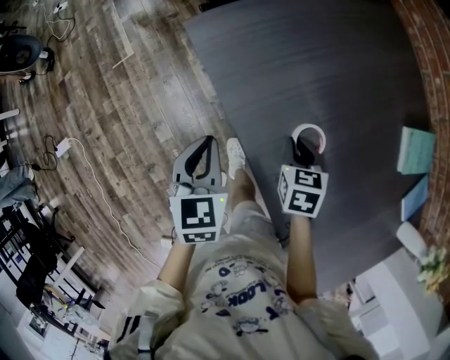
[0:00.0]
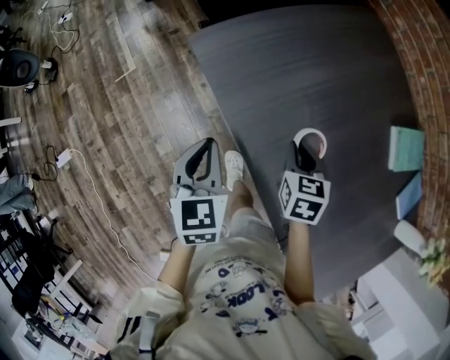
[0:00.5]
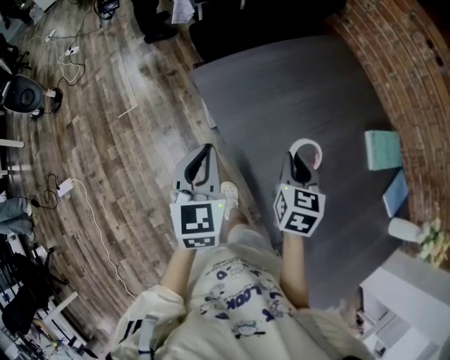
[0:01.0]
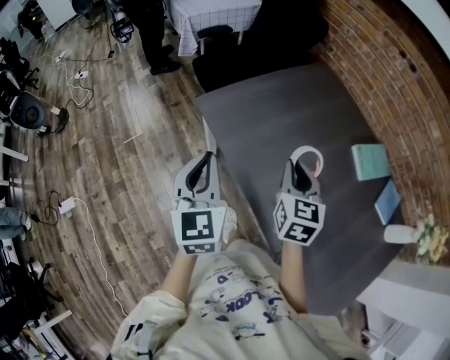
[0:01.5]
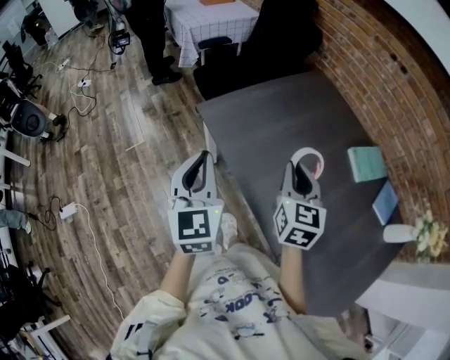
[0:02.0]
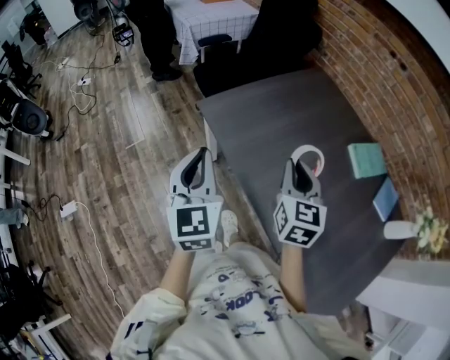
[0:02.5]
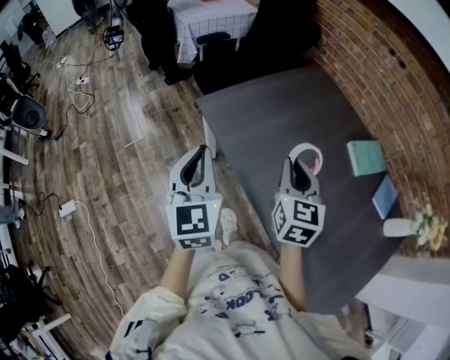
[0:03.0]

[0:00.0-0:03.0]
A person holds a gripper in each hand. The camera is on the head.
0:00.0 to 0:01.5: Both grippers travel together upward, some 20 cm. The left gripper turns by some 30 degrees. The right gripper tilts its fingers approximately 40 degrees upward.
0:01.5 to 0:03.0: The right gripper moves approximately 5 cm.

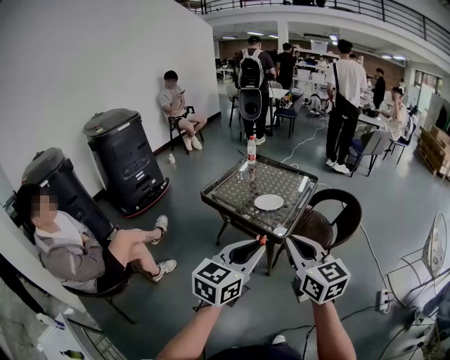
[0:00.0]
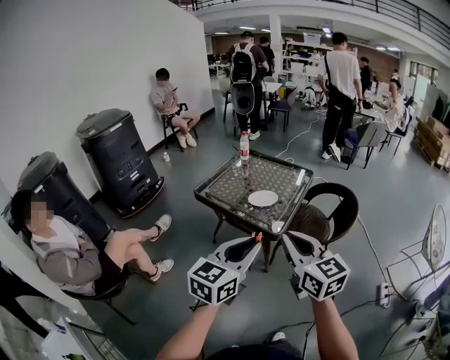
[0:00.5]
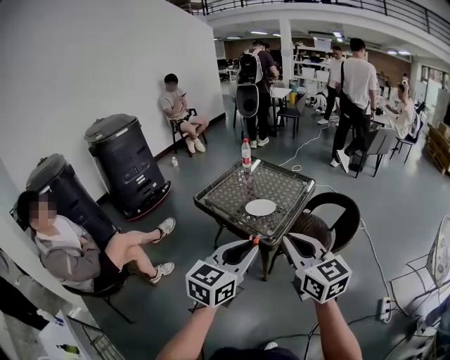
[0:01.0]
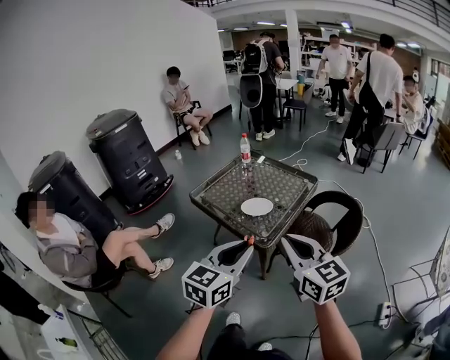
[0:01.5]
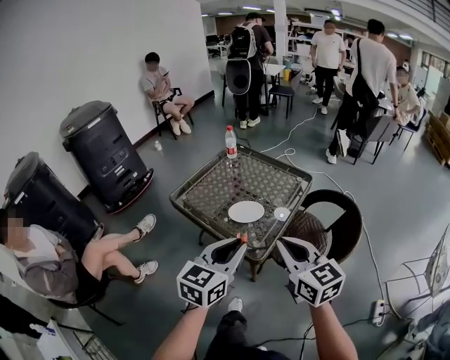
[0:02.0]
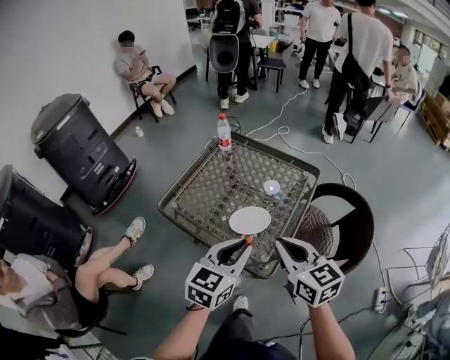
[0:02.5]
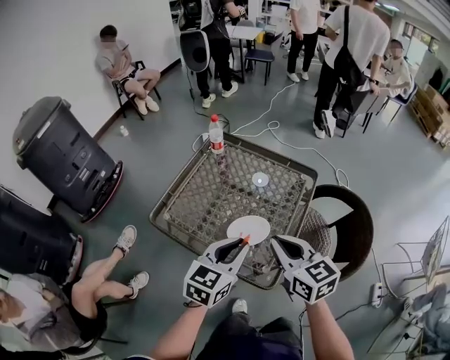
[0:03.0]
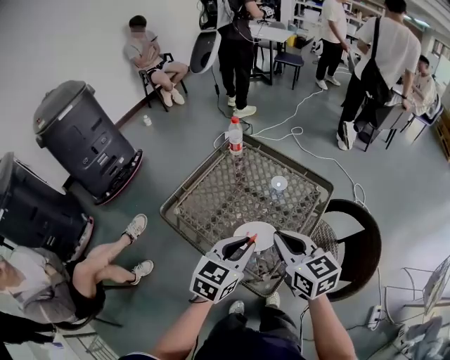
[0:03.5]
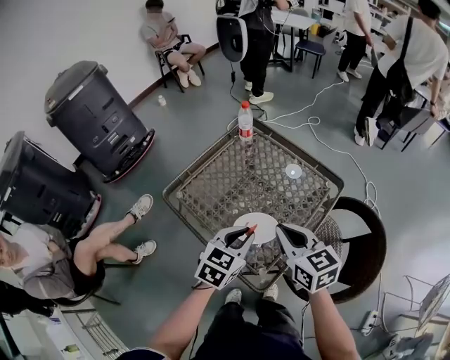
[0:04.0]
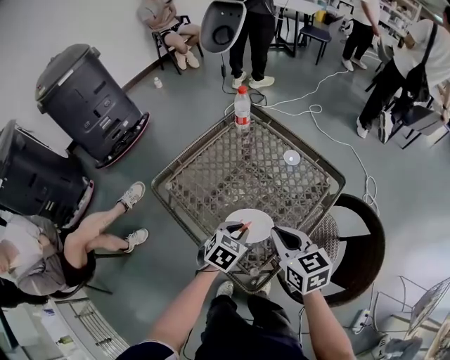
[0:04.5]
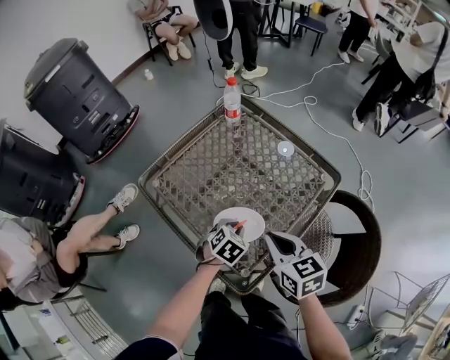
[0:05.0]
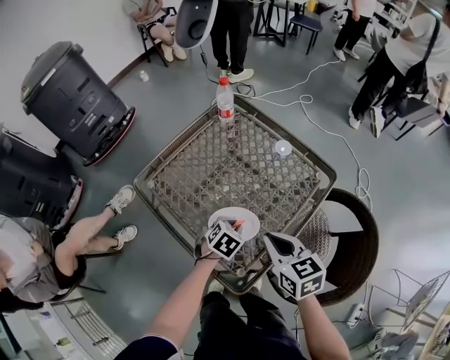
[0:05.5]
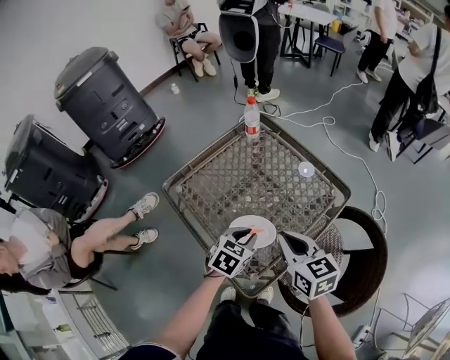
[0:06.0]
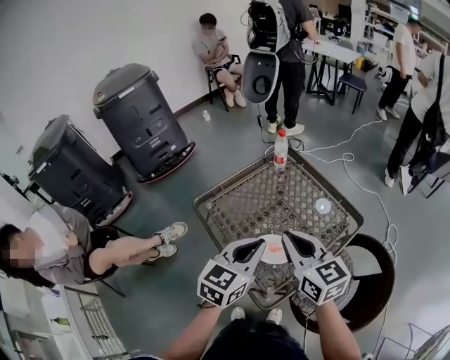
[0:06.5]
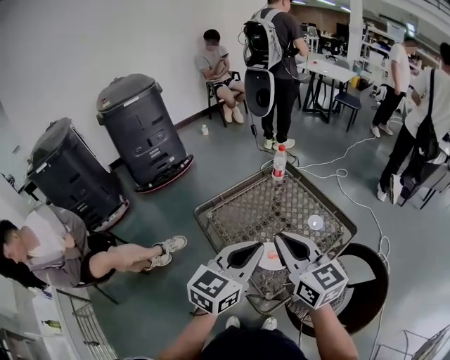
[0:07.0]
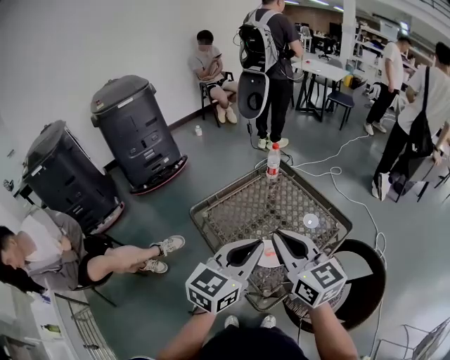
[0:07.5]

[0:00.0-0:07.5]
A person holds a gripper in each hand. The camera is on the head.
0:00.0 to 0:02.0: The right gripper goes approximately 25 cm forward and to the right. Meanwhile the left gripper moves forward, about 20 cm.
0:02.0 to 0:04.0: The grippers both shift forward and downward by approximately 30 cm.
0:04.0 to 0:05.5: The left gripper shifts some 20 cm downward, and swivels approximately 30 degrees, while the right gripper moves downward, roughly 10 cm.
0:05.5 to 0:07.5: The right gripper goes approximately 25 cm upward, and turns by some 30 degrees. The left gripper is displaced upward by some 40 cm, and tilts its fingers some 50 degrees upward.

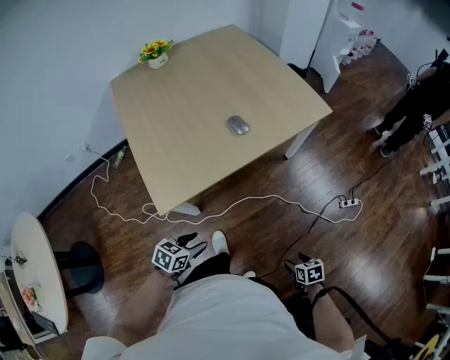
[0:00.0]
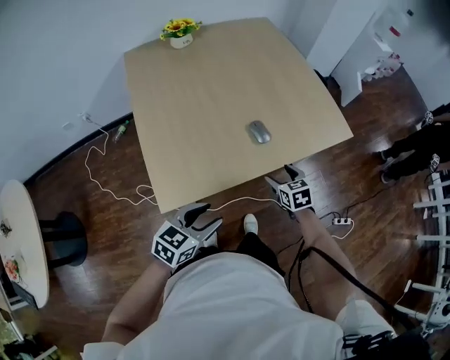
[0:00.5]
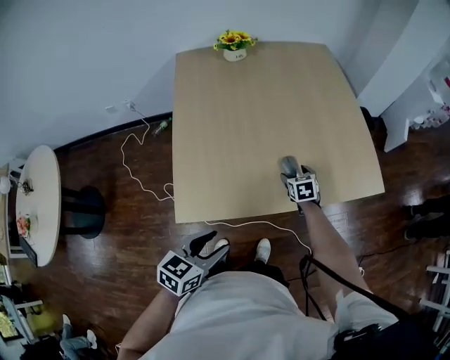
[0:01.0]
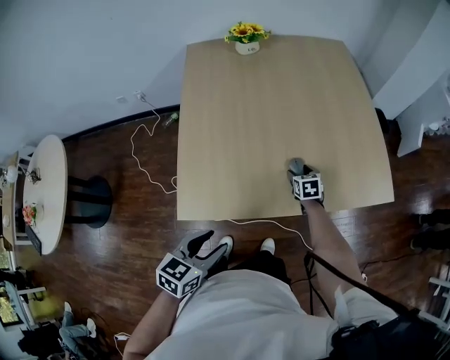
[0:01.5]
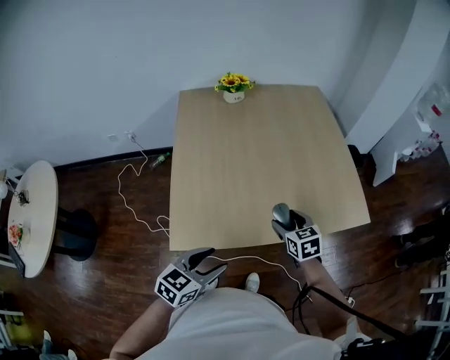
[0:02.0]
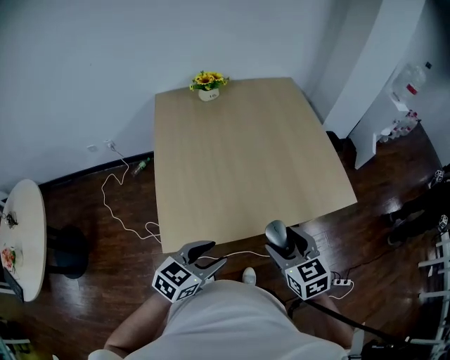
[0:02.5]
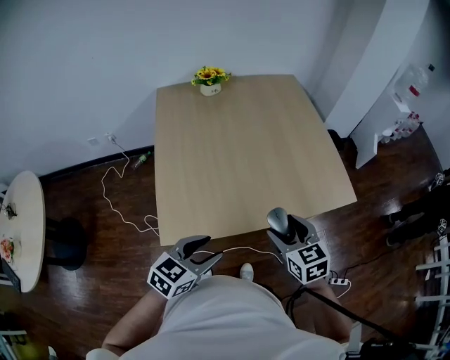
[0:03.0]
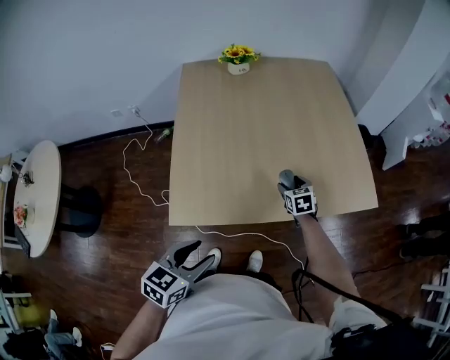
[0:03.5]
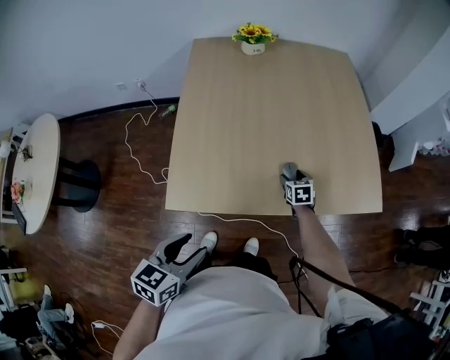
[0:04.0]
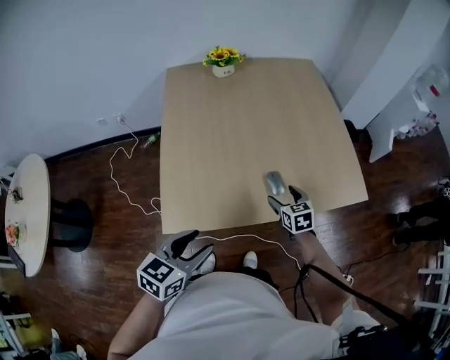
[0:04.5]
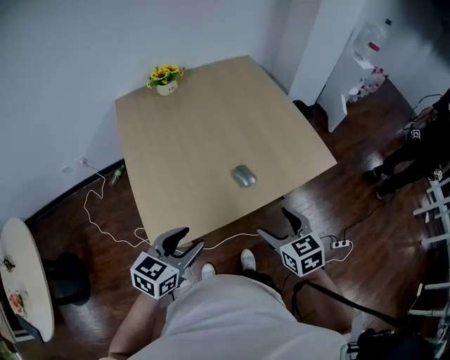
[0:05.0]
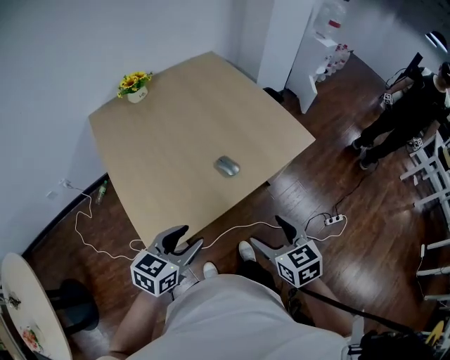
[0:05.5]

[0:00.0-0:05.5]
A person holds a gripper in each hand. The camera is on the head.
0:00.0 to 0:02.0: The right gripper is displaced forward, to the left and upward by about 60 cm, and swivels about 40 degrees. Meanwhile the left gripper moves upward and forward, some 25 cm, and changes its angle by approximately 30 degrees.
0:02.0 to 0:03.5: The right gripper goes roughly 15 cm downward and forward.
0:03.5 to 0:05.5: The right gripper ends up about 35 cm from where it was, and changes its angle by some 20 degrees. Meanwhile the left gripper moves some 5 cm, and rotates about 30 degrees.

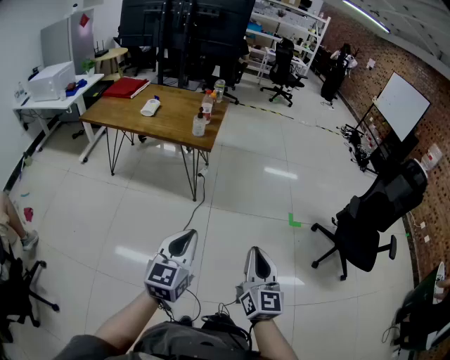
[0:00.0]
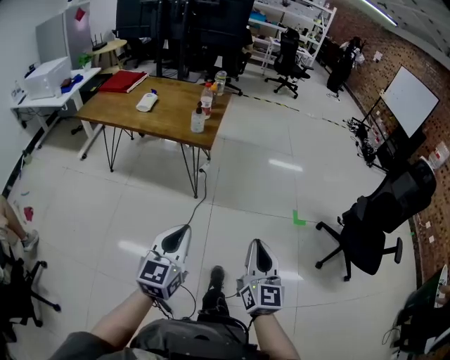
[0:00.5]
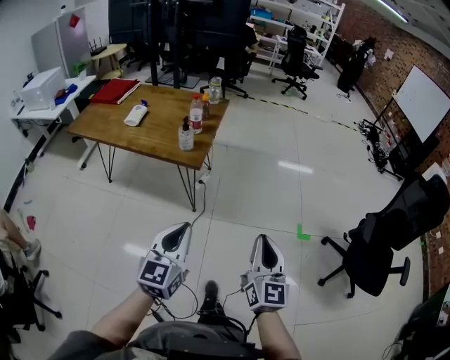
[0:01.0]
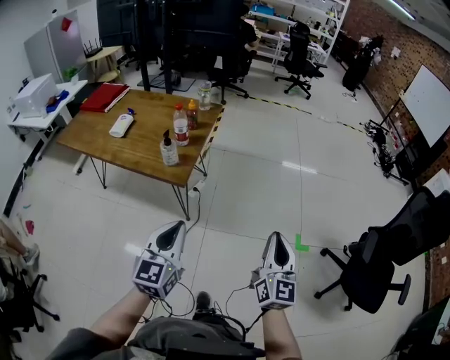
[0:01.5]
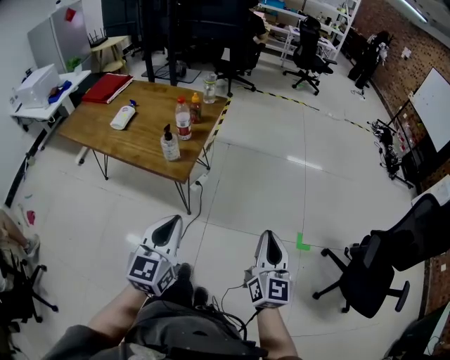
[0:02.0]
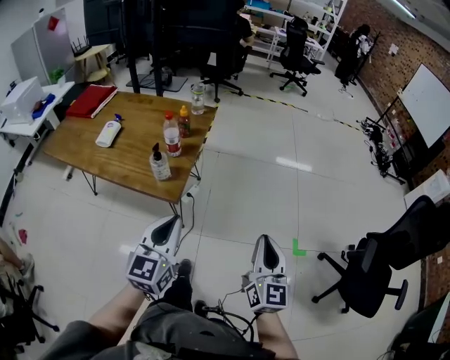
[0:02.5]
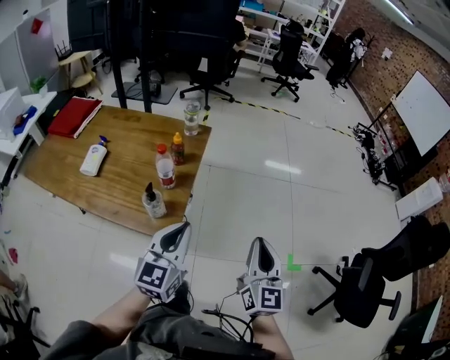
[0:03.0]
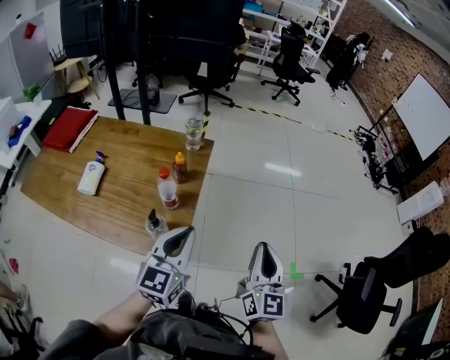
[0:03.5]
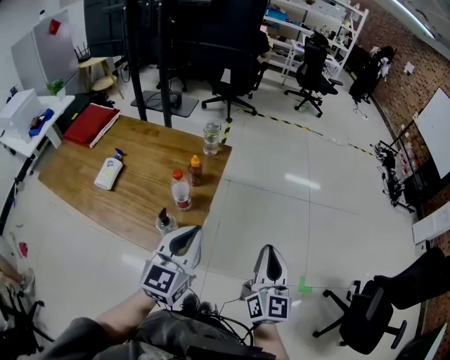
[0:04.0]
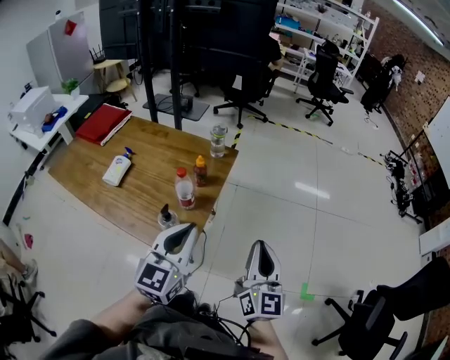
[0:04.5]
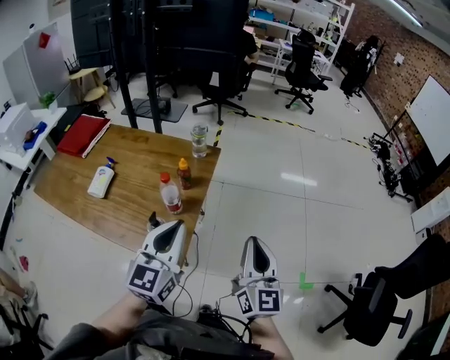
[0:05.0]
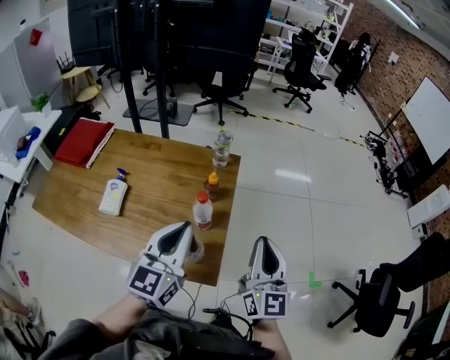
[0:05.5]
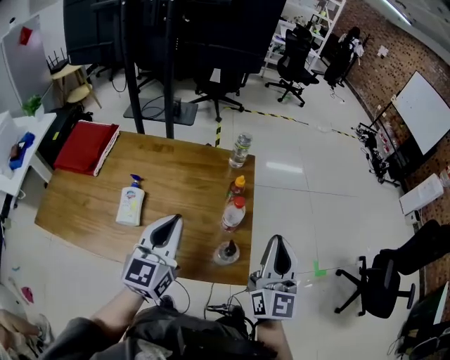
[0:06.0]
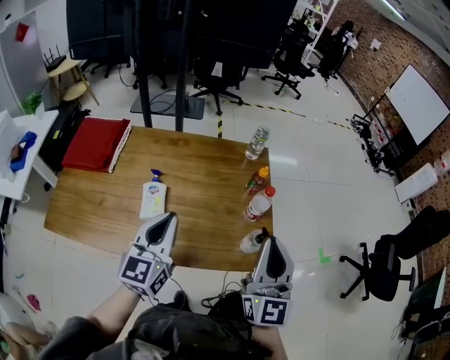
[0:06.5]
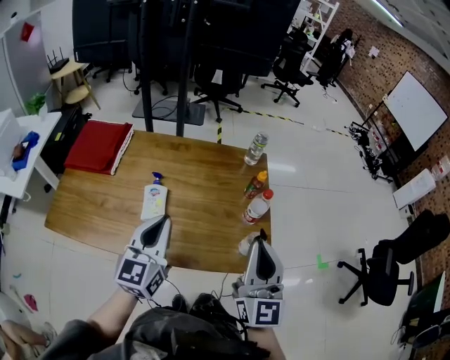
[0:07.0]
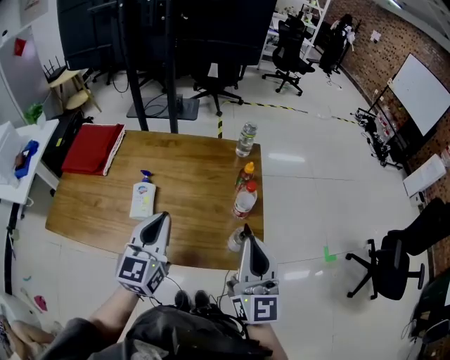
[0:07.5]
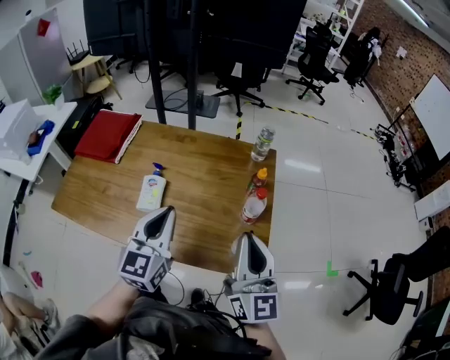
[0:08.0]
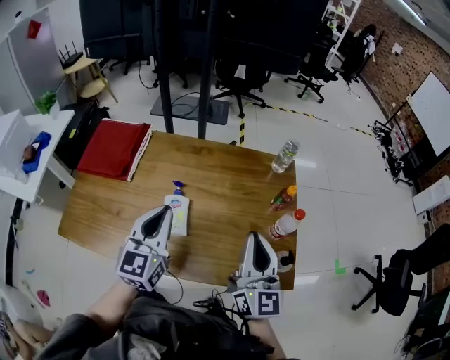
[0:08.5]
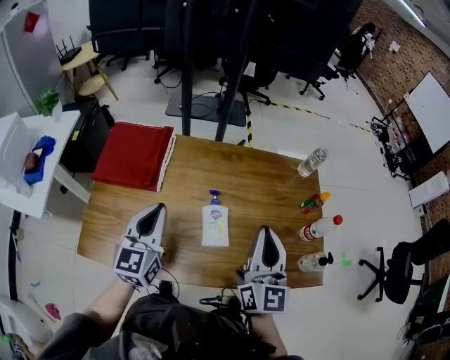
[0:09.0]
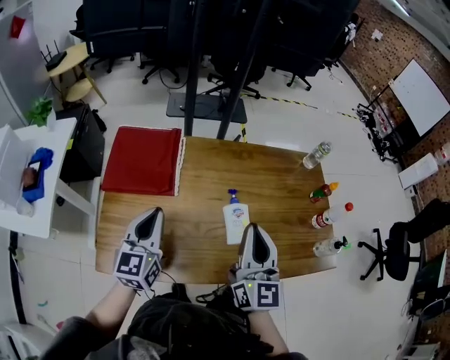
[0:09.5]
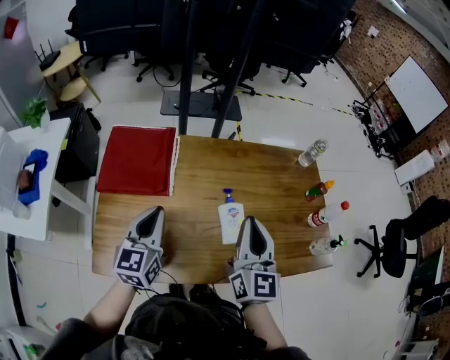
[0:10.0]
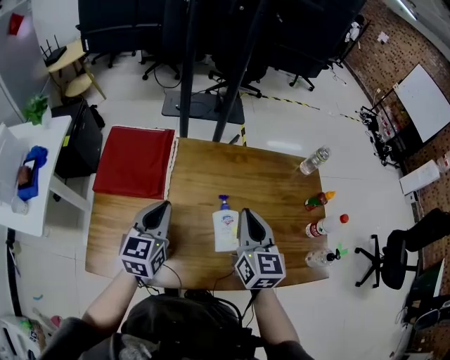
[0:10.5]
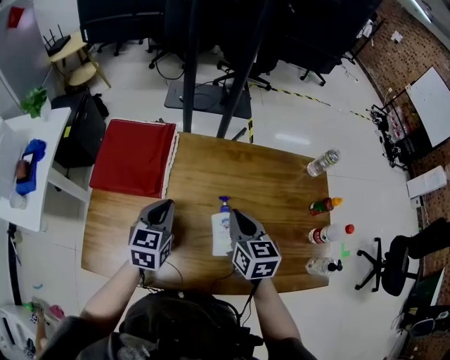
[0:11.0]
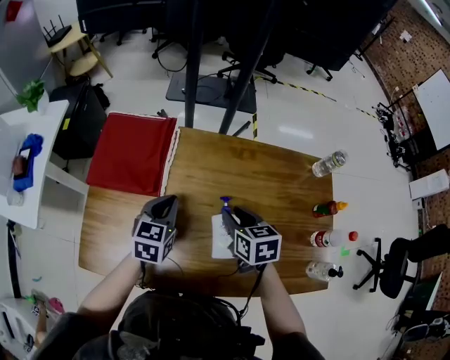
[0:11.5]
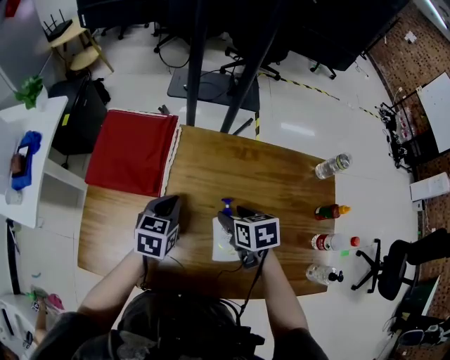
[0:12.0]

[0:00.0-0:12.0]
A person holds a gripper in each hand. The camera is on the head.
0:00.0 to 0:02.0: The two grippers travel together, forward, roughly 60 cm.
0:02.0 to 0:04.0: The right gripper shifts some 40 cm forward and to the left. Meanwhile the left gripper goes about 40 cm forward.
0:04.0 to 0:06.0: Both grippers travel together to the left, some 35 cm.
0:06.0 to 0:08.0: The right gripper is displaced to the left and backward by roughly 15 cm. Meanwhile the left gripper shifts roughly 5 cm to the left.
0:08.0 to 0:10.0: The pair of grippers is taken to the left, about 50 cm.
0:10.0 to 0:12.0: The right gripper travels downward and forward by roughly 30 cm, tilts its fingers approximately 50 degrees downward, and opens its fingers; the left gripper goes some 20 cm forward, downward and to the right, and rotates some 30 degrees.
